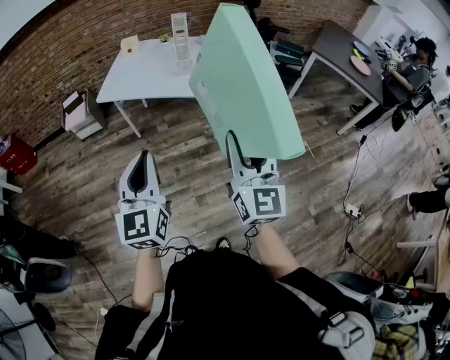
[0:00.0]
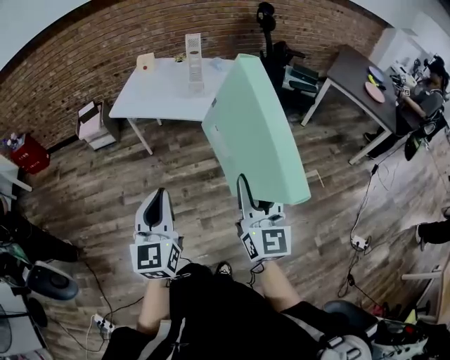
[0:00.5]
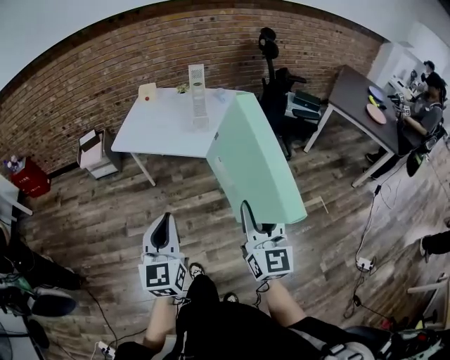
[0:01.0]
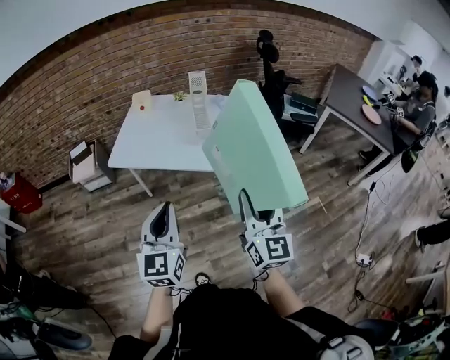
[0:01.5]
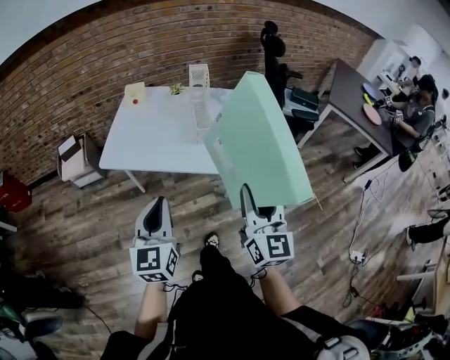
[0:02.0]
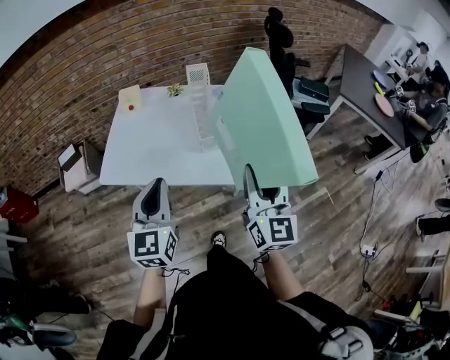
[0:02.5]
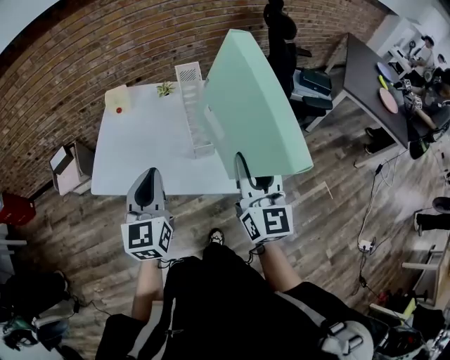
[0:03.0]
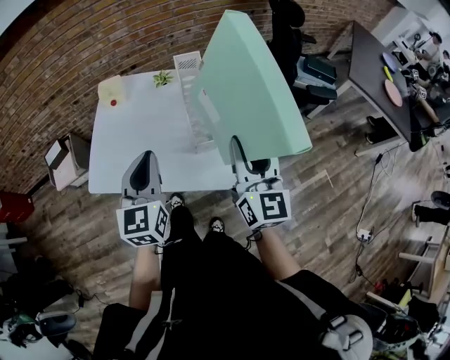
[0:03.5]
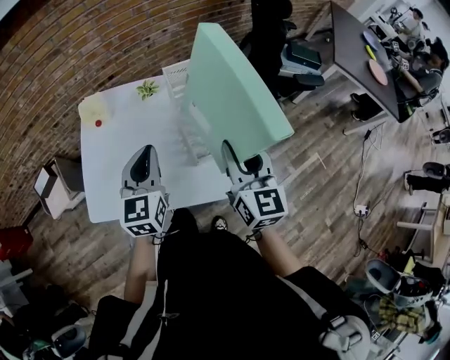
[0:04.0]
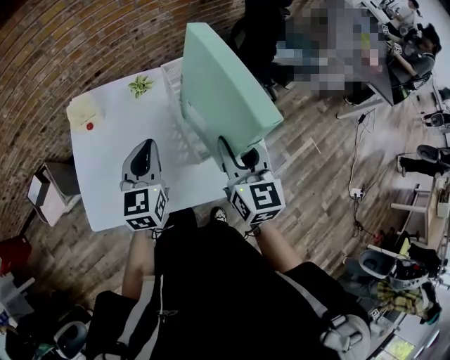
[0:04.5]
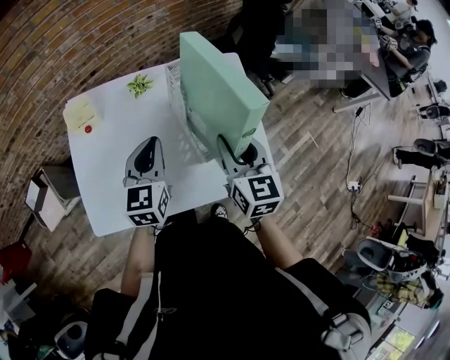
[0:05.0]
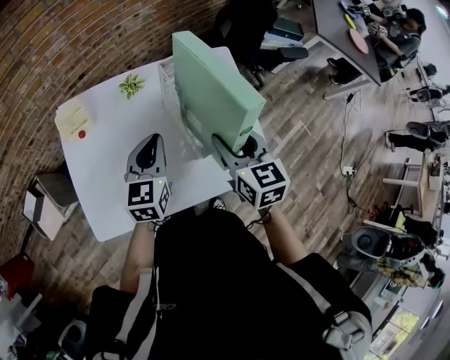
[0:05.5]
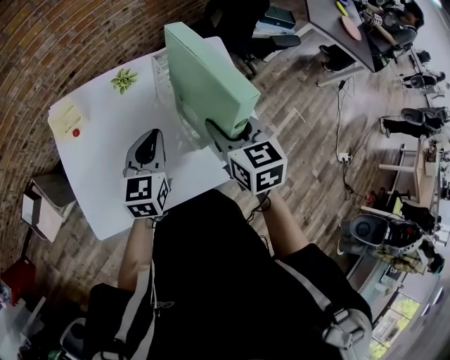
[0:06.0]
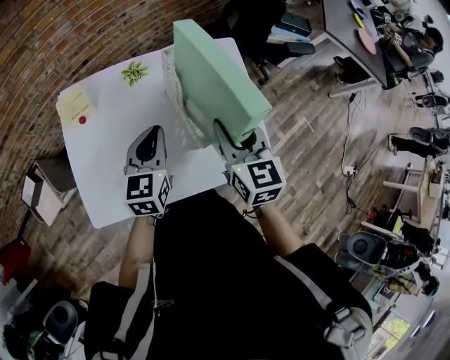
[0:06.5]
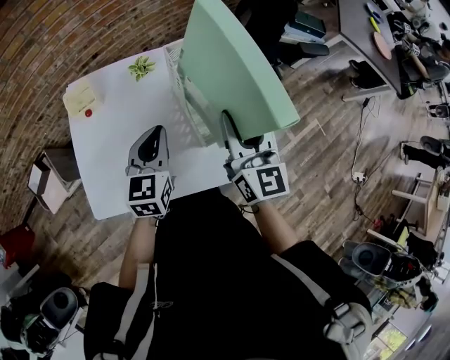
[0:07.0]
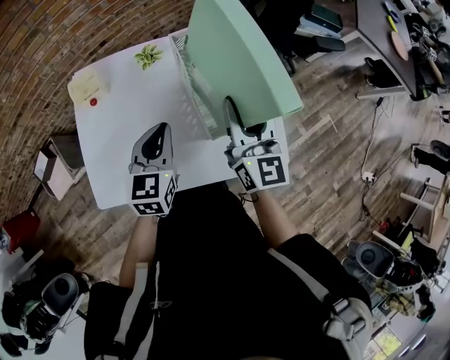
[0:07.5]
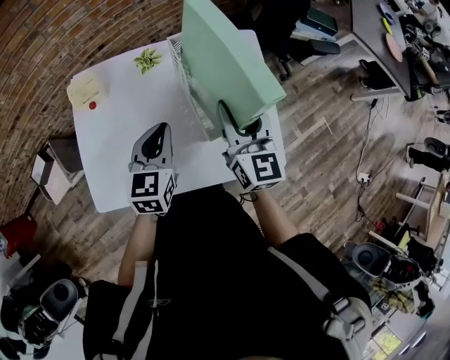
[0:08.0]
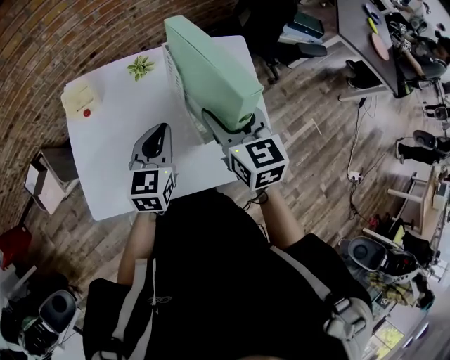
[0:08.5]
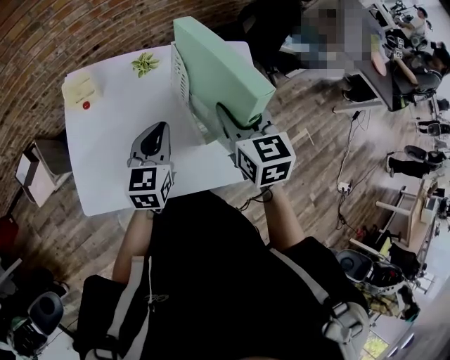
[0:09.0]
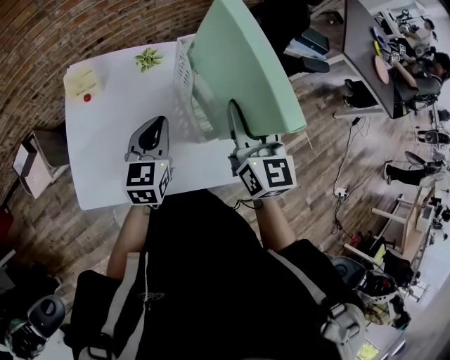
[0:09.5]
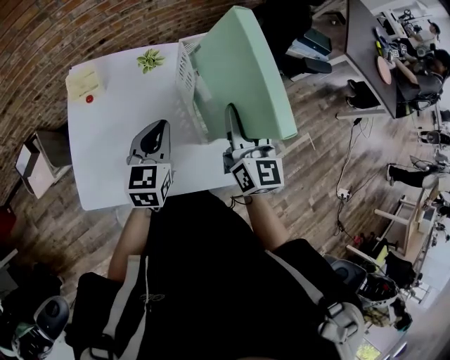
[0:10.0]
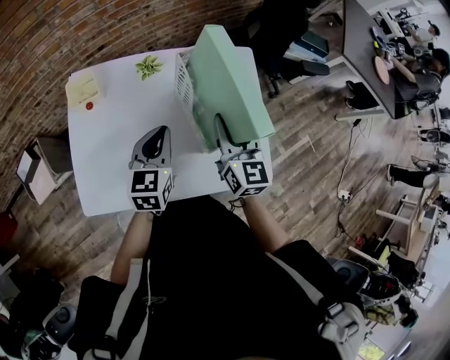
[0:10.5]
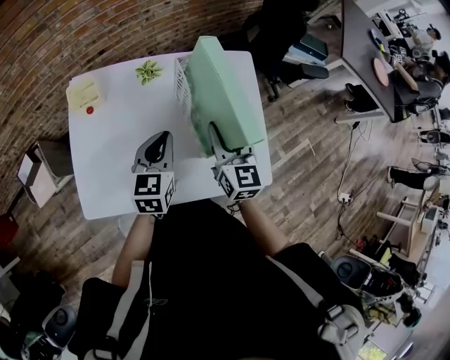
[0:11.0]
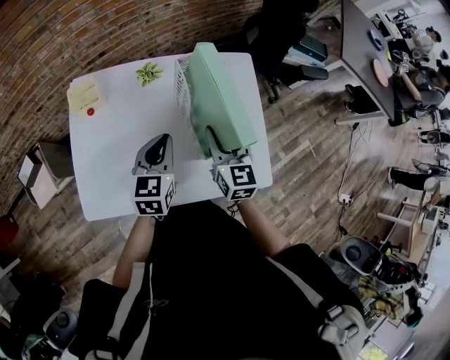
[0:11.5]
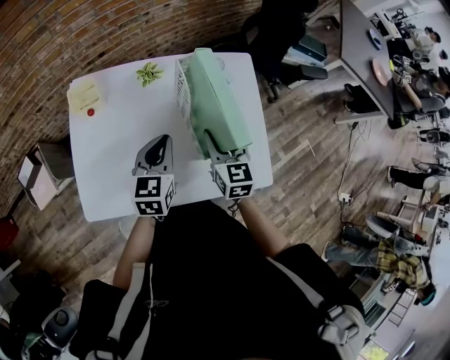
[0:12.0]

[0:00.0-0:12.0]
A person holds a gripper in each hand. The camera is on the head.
0:00.0 to 0:02.0: The grippers both shift forward by some 30 cm.
0:02.0 to 0:04.0: The two grippers go some 40 cm forward.
0:04.0 to 0:06.0: The right gripper goes about 10 cm forward, to the left and downward, and swivels some 30 degrees; the left gripper moves forward and downward, approximately 10 cm, and changes its angle by about 20 degrees.
0:06.0 to 0:08.0: The right gripper changes its angle by about 30 degrees.
0:10.0 to 0:12.0: The right gripper travels downward by approximately 10 cm, and rotates approximately 20 degrees.

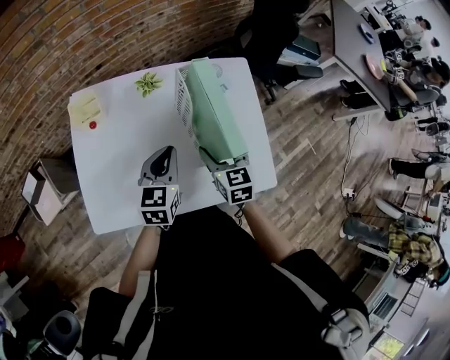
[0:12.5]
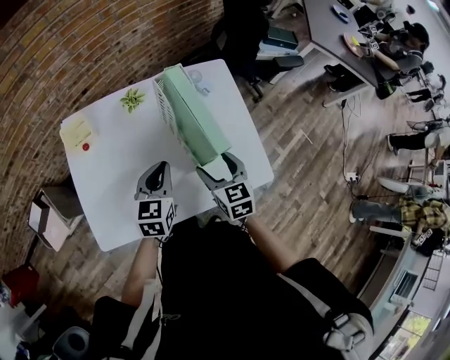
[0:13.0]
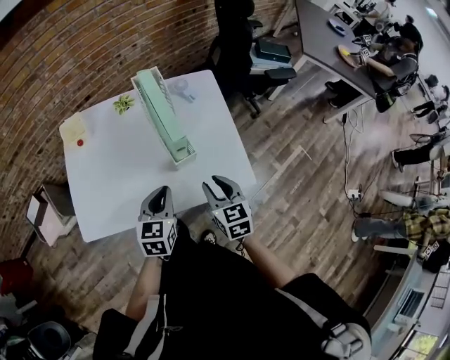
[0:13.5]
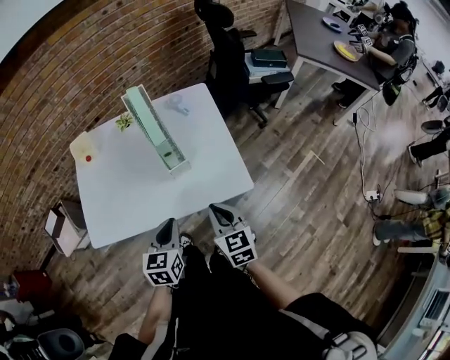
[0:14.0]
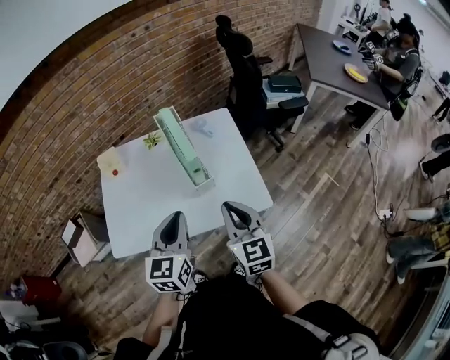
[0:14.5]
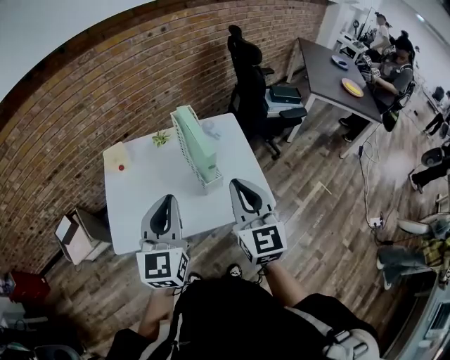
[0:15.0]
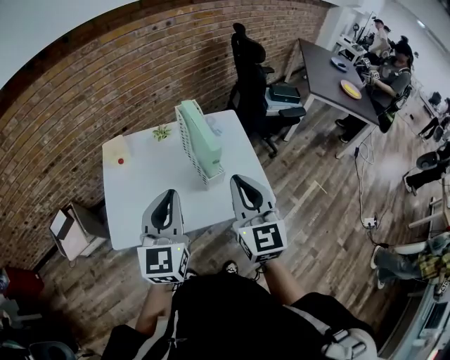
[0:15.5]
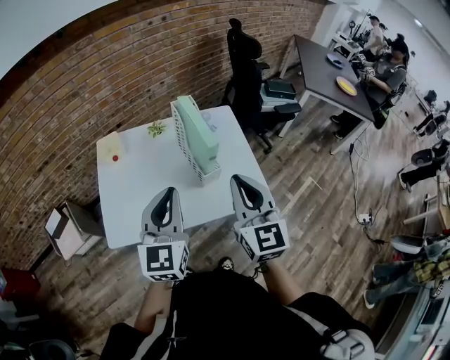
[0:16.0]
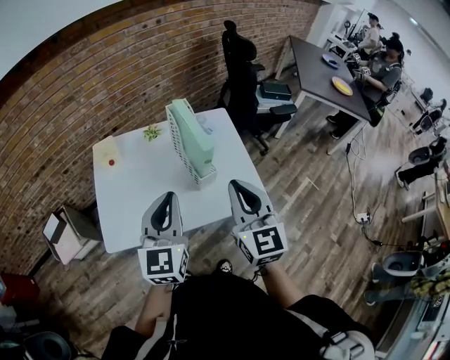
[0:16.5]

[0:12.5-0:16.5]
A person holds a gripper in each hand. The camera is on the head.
0:12.5 to 0:14.5: Both grippers travel together backward, upward and to the right, approximately 30 cm. The right gripper changes its angle by about 20 degrees, and closes.
0:14.5 to 0:16.5: The left gripper shifts roughly 10 cm to the left and upward. Meanwhile the right gripper is displaced upward and to the left by roughly 10 cm.

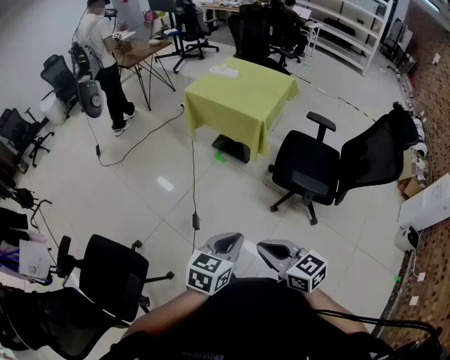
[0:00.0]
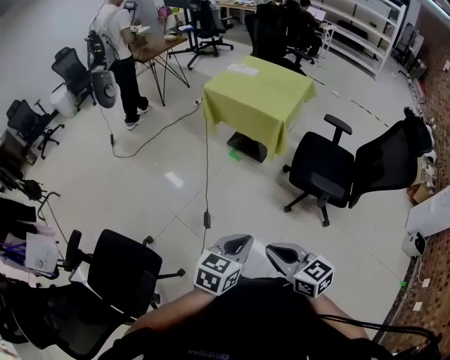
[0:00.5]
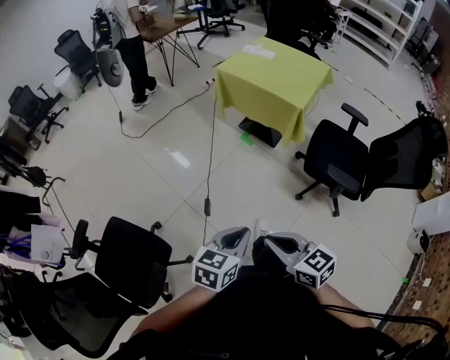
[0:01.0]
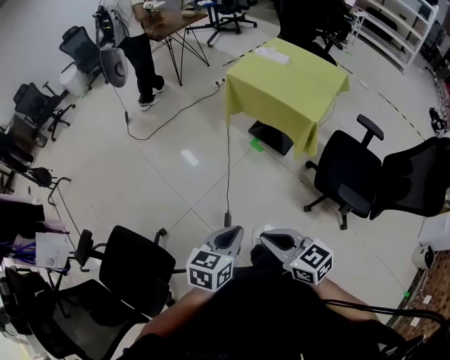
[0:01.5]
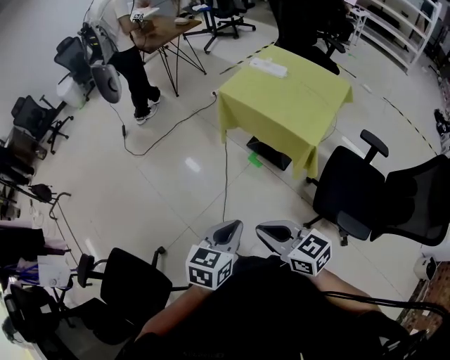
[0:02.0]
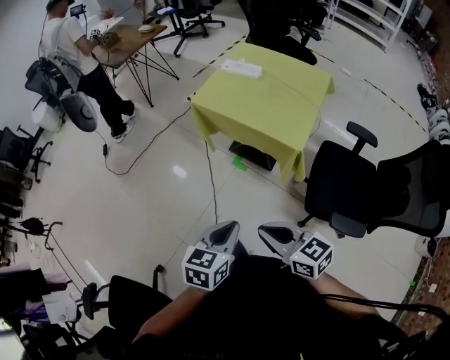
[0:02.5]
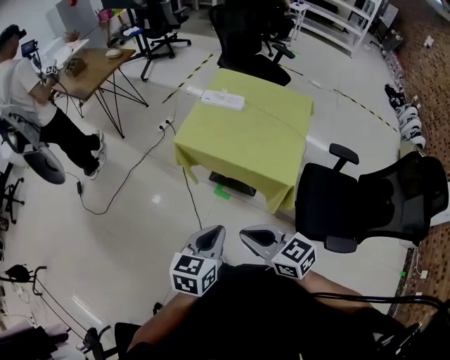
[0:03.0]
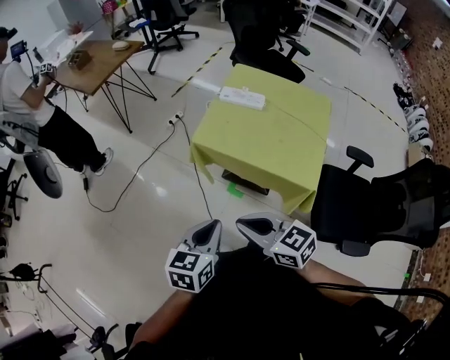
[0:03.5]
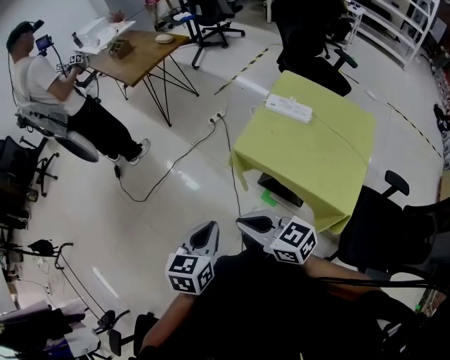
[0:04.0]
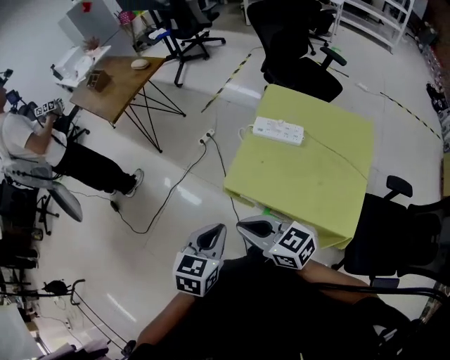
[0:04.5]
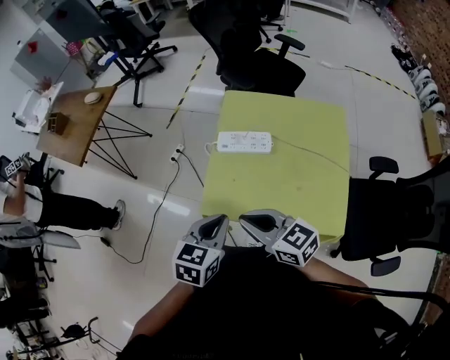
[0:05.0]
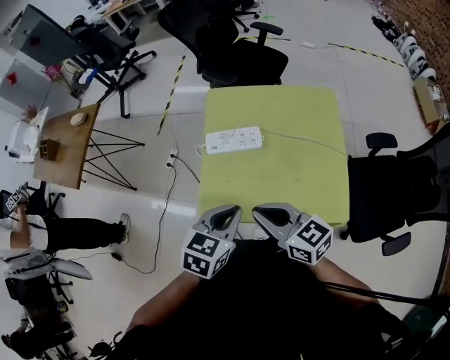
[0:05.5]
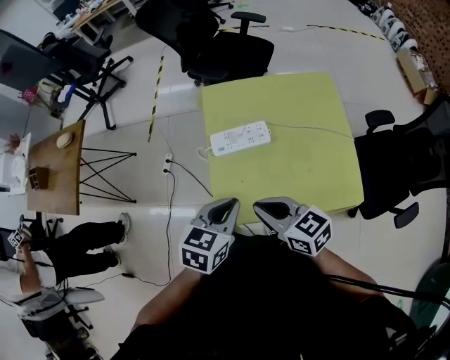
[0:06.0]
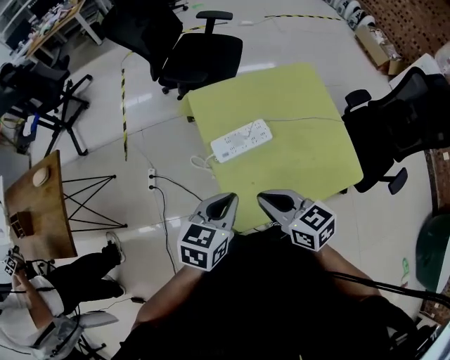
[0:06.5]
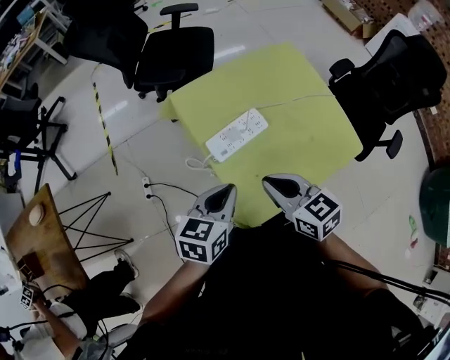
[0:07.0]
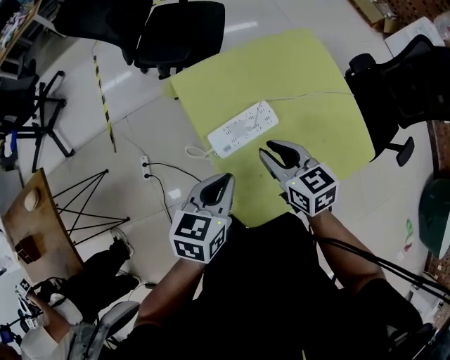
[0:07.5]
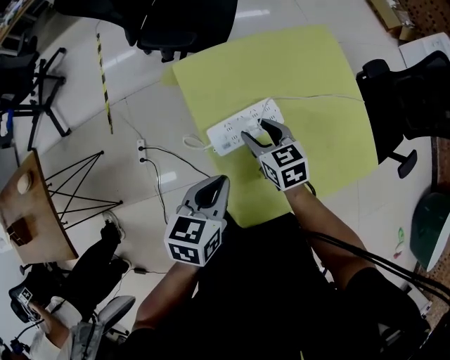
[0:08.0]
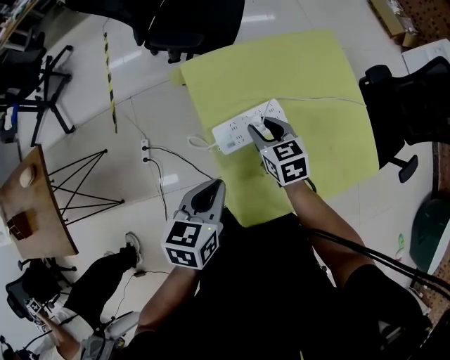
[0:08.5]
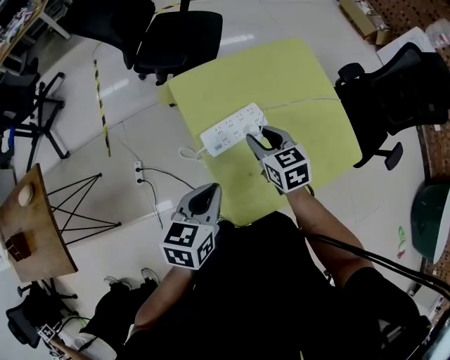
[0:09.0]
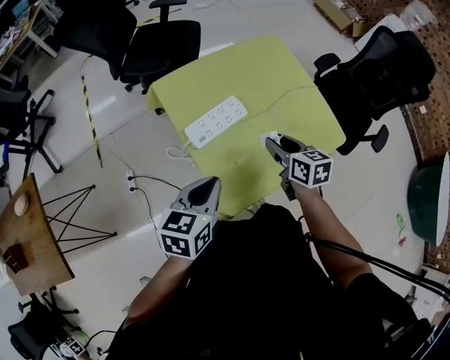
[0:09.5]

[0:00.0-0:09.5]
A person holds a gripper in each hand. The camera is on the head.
0:00.0 to 0:02.0: Both grippers travel together forward, approximately 30 cm.
0:02.0 to 0:04.0: The pair of grippers is taken forward, some 40 cm.
0:04.0 to 0:05.5: The left gripper changes place by some 35 cm, and swivels roughly 50 degrees, while the right gripper shifts by about 30 cm, and rotates about 40 degrees.
0:05.5 to 0:07.5: The right gripper ends up roughly 25 cm from where it was, and rotates approximately 40 degrees. Meanwhile the left gripper changes place by approximately 25 cm, and rotates approximately 20 degrees.
0:07.5 to 0:09.5: The left gripper heads backward, covering about 10 cm. Meanwhile the right gripper shifts about 10 cm to the right.

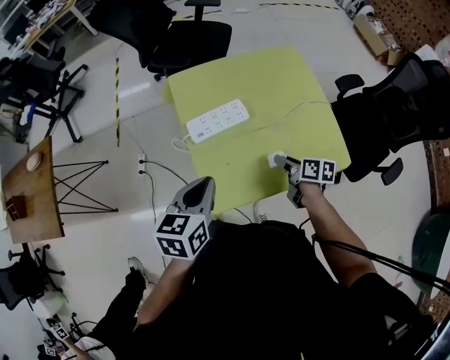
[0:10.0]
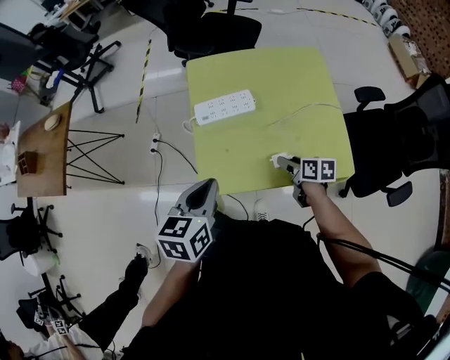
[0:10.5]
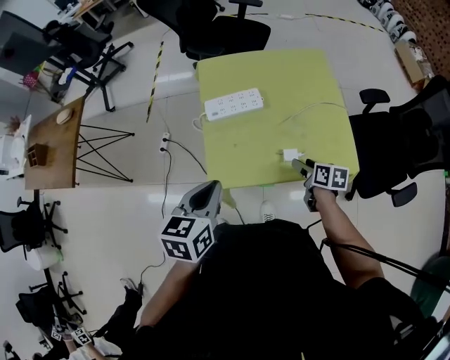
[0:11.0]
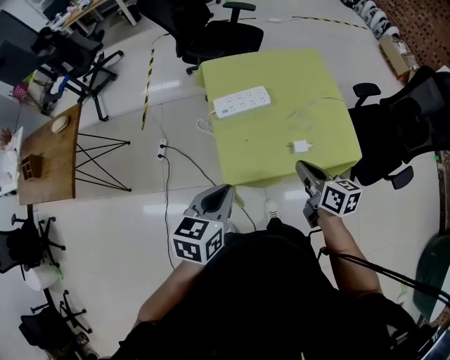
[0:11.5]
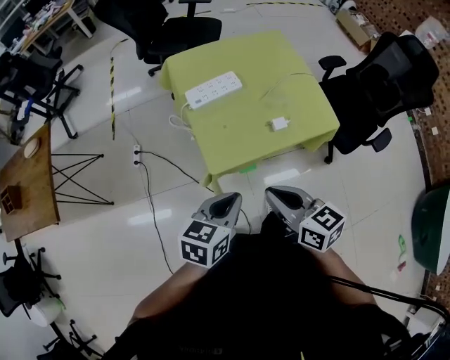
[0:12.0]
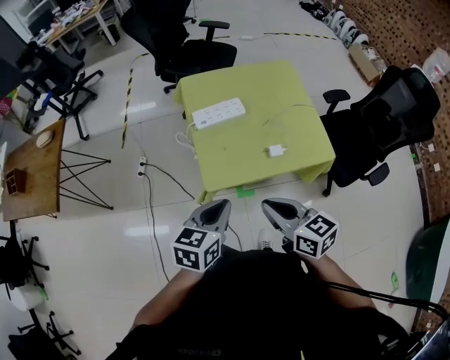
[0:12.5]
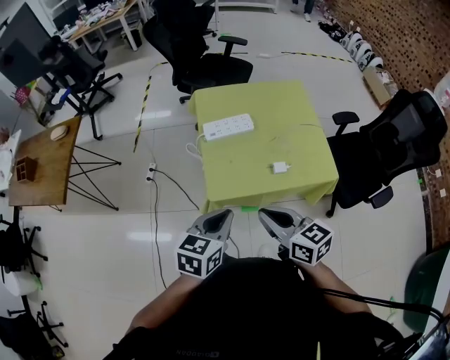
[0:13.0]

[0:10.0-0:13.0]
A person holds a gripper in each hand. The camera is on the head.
0:10.0 to 0:11.5: The left gripper shifts approximately 15 cm backward; the right gripper heads upward and backward, covering roughly 15 cm, rotates approximately 20 degrees, and closes up.
0:11.5 to 0:13.0: The right gripper shifts about 15 cm backward, upward and to the left, and turns by approximately 20 degrees. The left gripper ends up roughly 5 cm from where it was.
